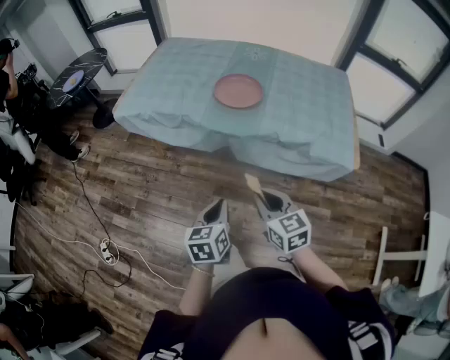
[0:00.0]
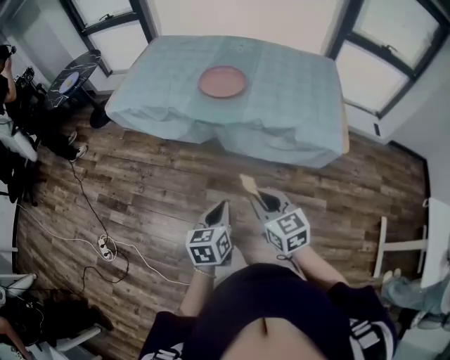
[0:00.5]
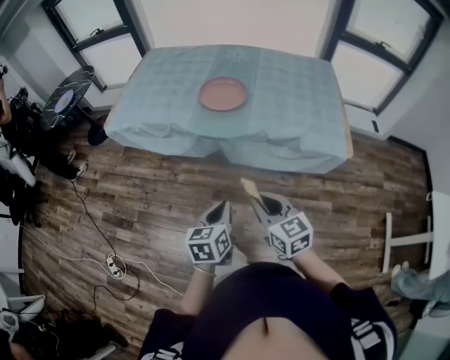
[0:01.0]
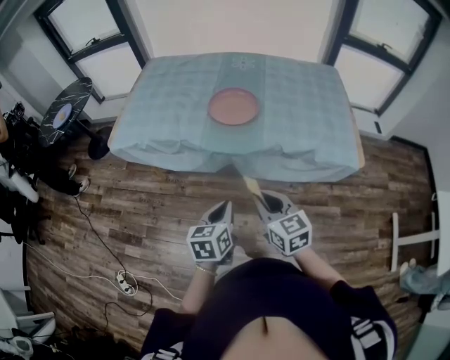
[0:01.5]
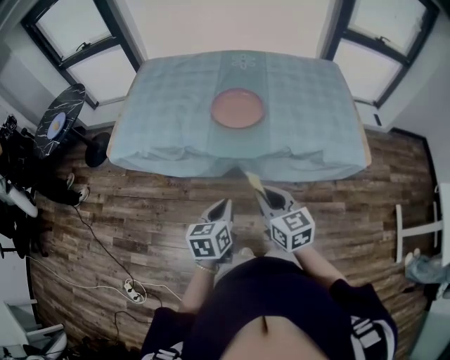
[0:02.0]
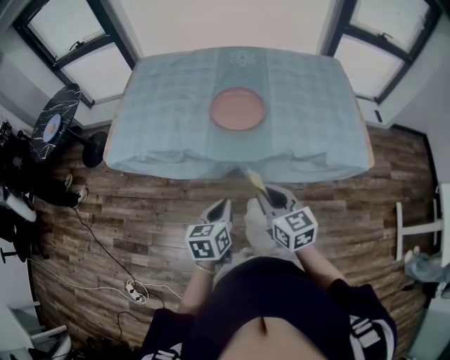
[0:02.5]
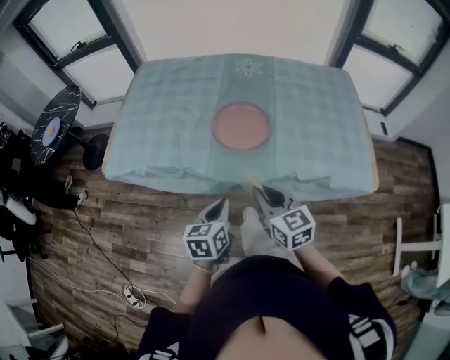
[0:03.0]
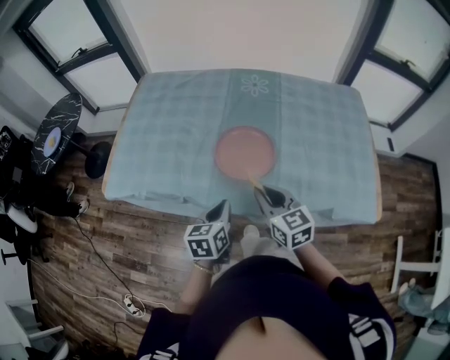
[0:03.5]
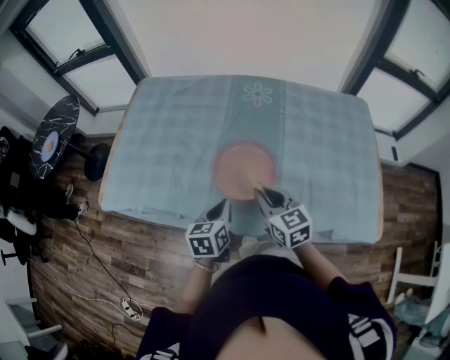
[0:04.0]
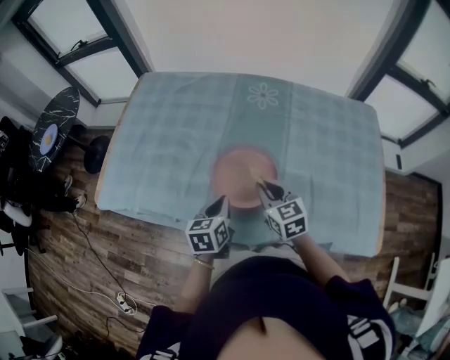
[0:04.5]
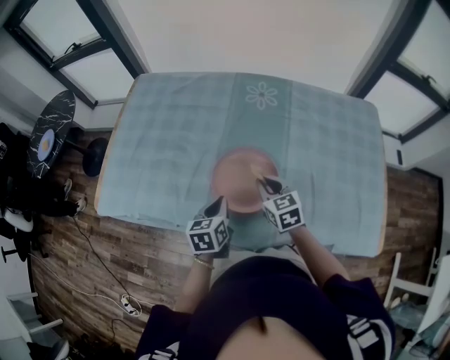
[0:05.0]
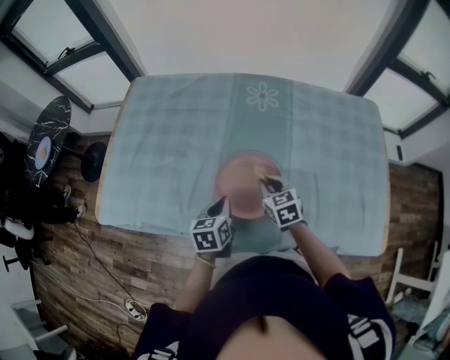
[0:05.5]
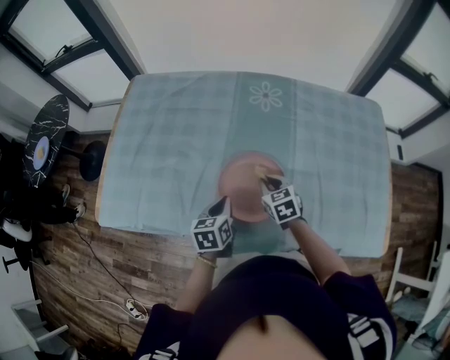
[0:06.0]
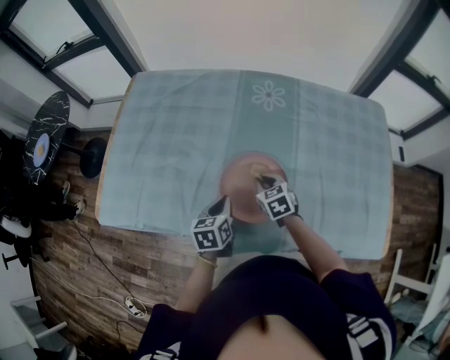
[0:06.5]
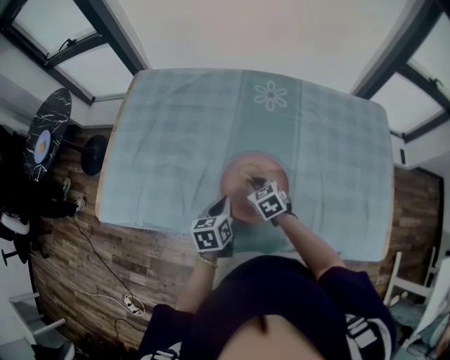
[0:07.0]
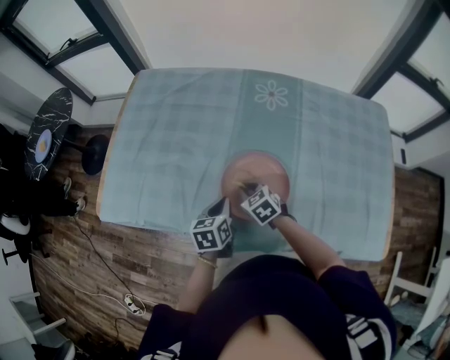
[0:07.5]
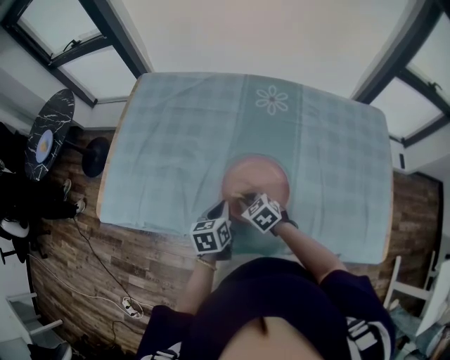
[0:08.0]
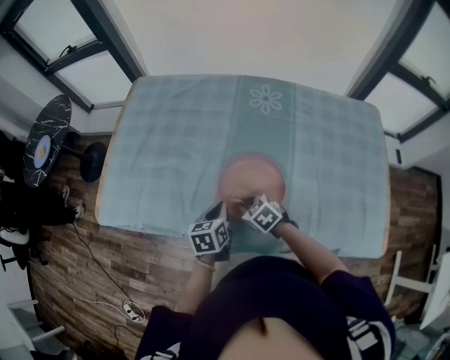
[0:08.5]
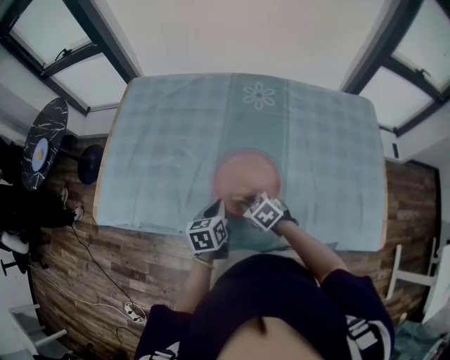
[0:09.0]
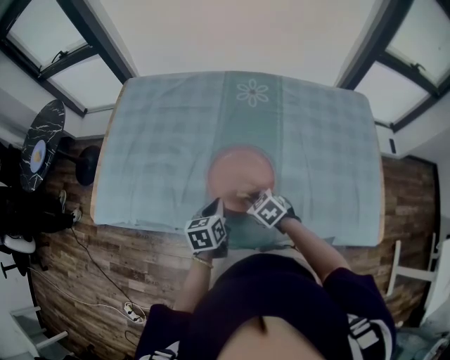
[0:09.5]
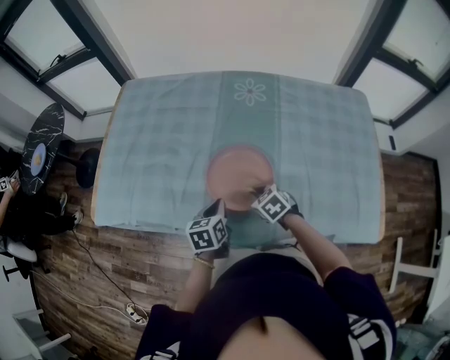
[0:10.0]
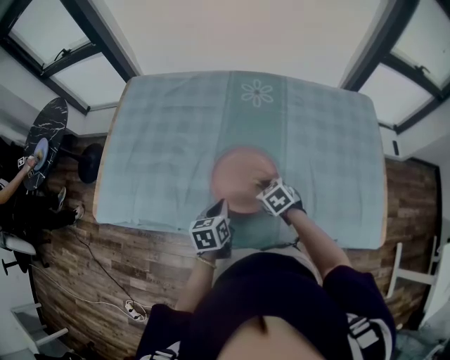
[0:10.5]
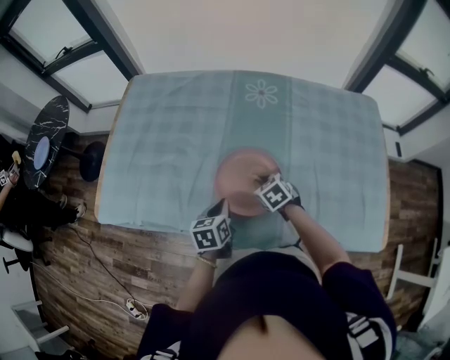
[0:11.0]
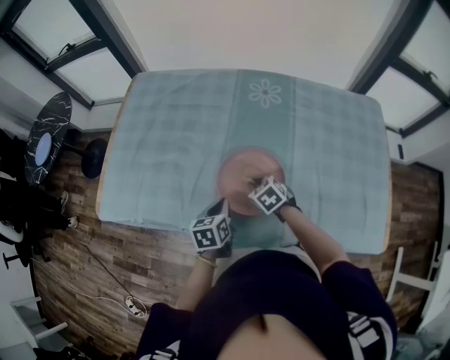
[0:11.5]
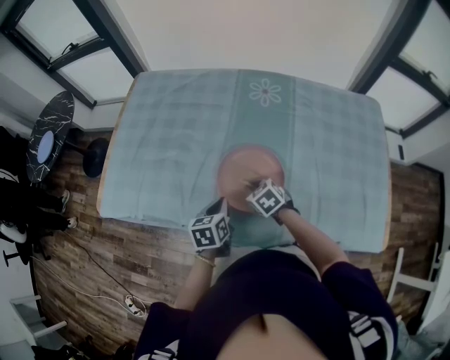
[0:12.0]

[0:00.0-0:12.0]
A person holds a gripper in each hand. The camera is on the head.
0:00.0 to 0:02.0: The left gripper is displaced forward by roughly 15 cm. Meanwhile the right gripper goes about 15 cm forward and to the left.
0:02.0 to 0:04.0: Both grippers travel together forward, about 35 cm.
0:04.0 to 0:06.0: The left gripper heads forward and downward, covering about 10 cm, while the right gripper moves downward and forward, some 20 cm, and changes its angle by approximately 20 degrees.
0:06.0 to 0:08.0: The right gripper goes some 10 cm to the left, and rotates approximately 20 degrees.
0:08.0 to 0:10.0: The right gripper moves to the right and backward, roughly 10 cm.
0:10.0 to 0:12.0: The right gripper changes place by some 5 cm.

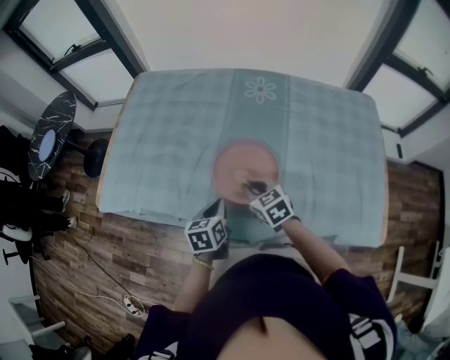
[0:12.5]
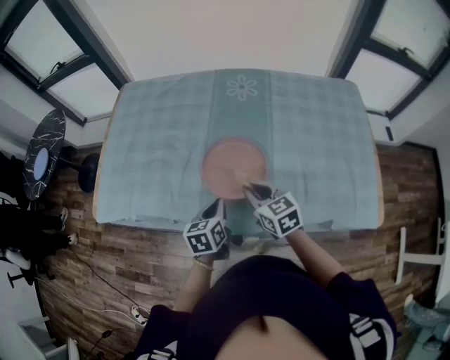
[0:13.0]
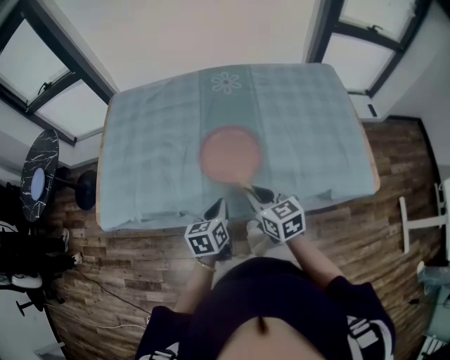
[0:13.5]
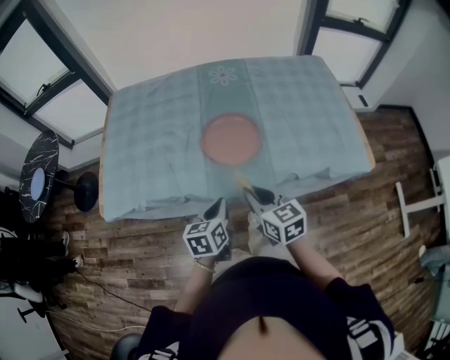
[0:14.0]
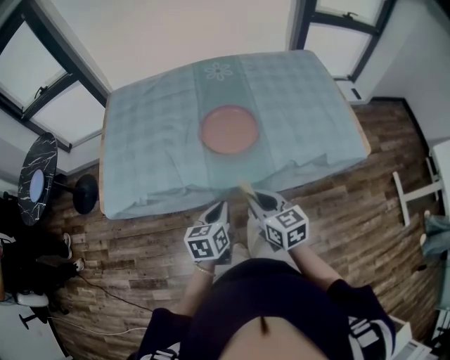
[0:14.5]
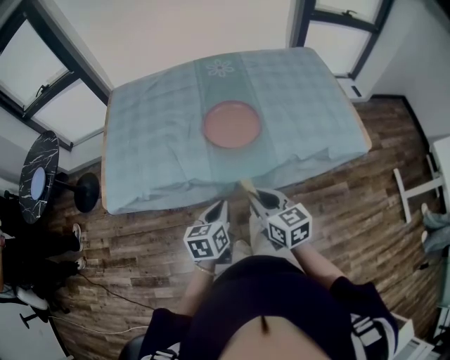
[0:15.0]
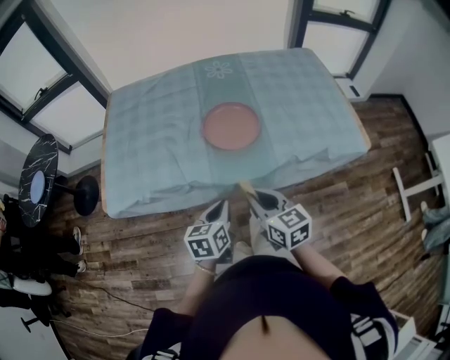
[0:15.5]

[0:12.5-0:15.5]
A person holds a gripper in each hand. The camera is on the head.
0:12.5 to 0:14.0: Both grippers travel together backward and upward, about 20 cm. The right gripper rotates roughly 30 degrees.
0:14.0 to 0:15.5: Both grippers move backward, about 5 cm.

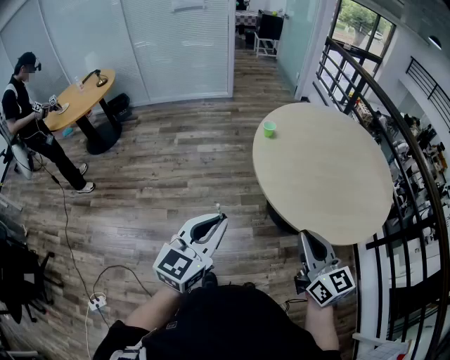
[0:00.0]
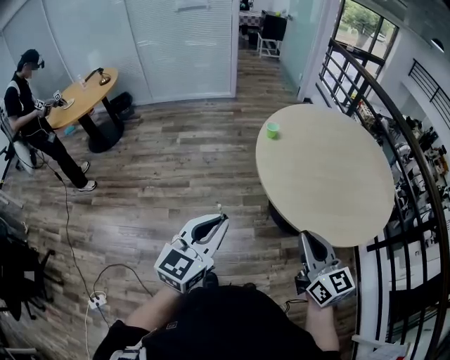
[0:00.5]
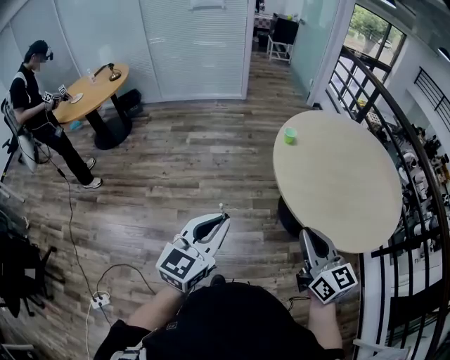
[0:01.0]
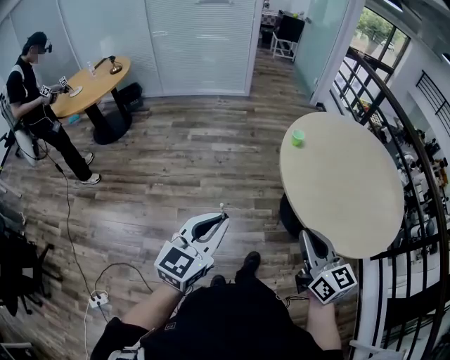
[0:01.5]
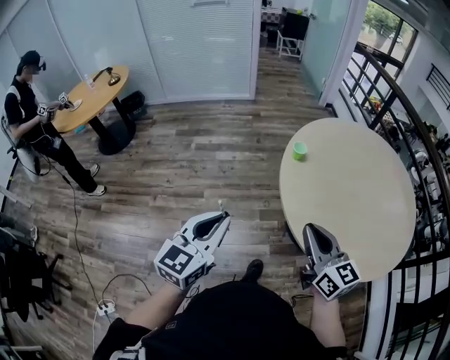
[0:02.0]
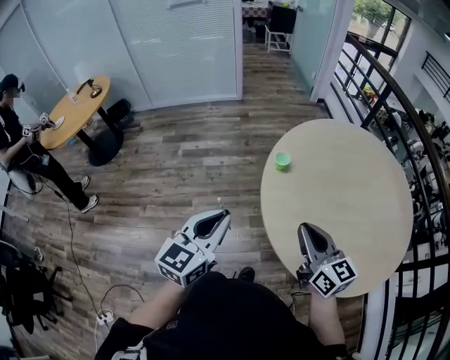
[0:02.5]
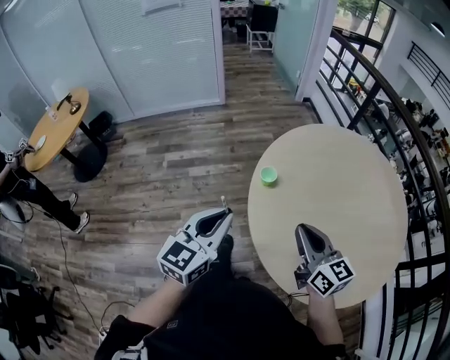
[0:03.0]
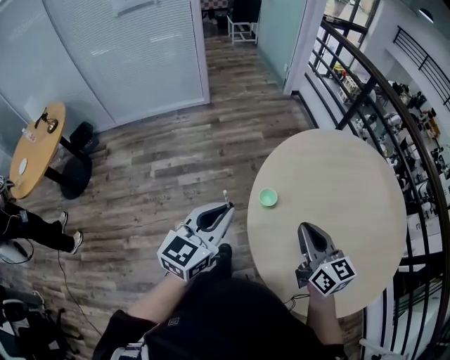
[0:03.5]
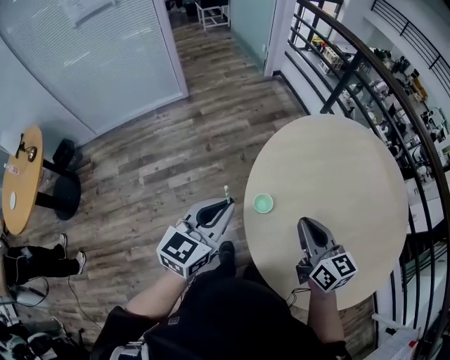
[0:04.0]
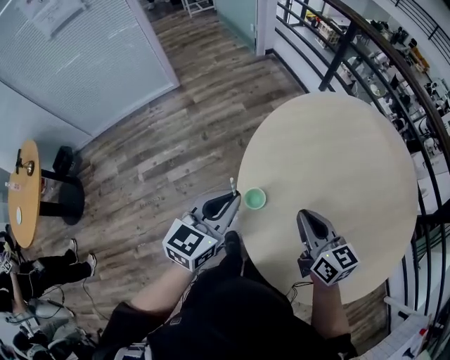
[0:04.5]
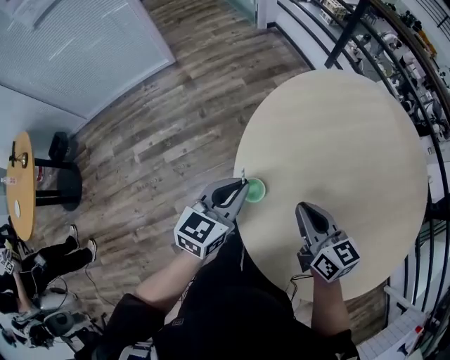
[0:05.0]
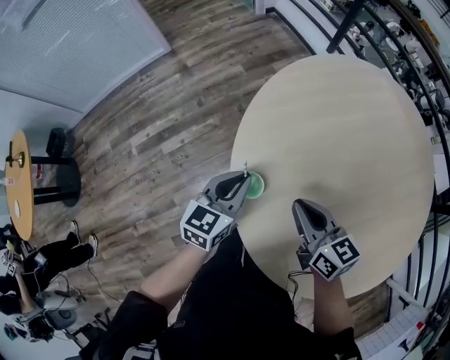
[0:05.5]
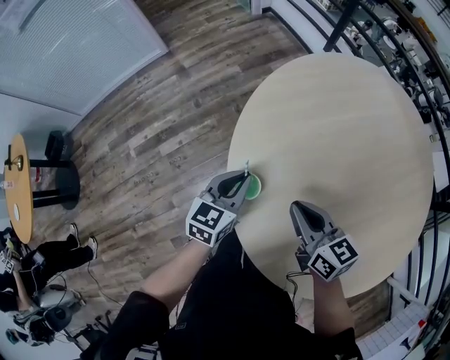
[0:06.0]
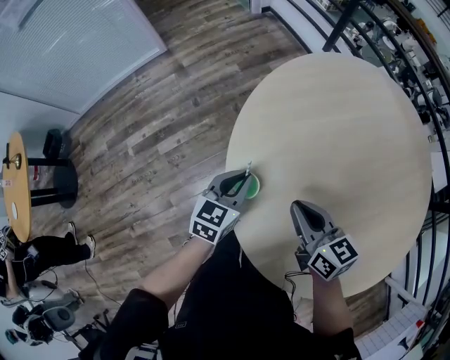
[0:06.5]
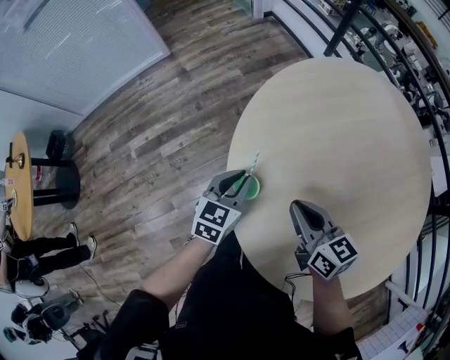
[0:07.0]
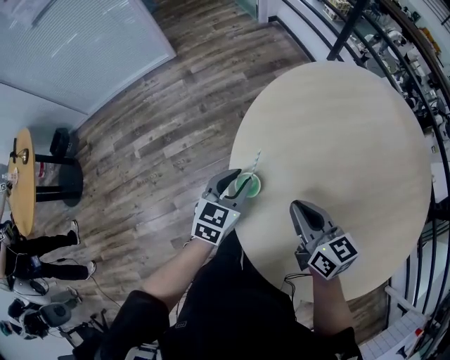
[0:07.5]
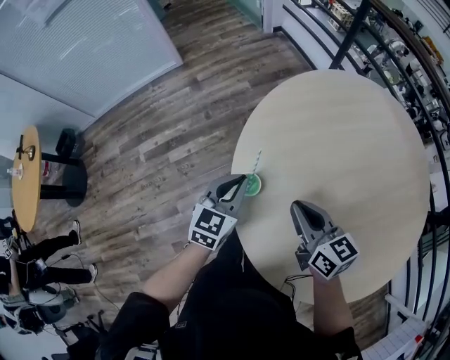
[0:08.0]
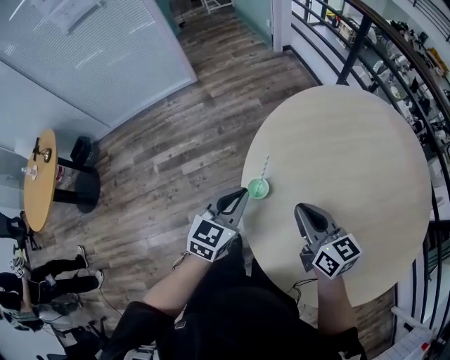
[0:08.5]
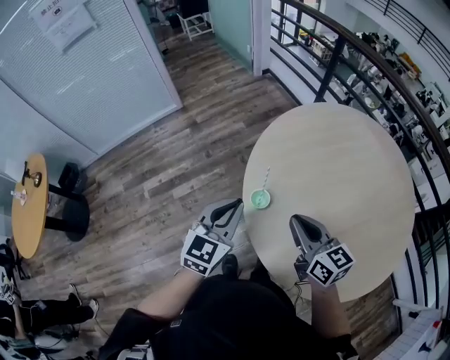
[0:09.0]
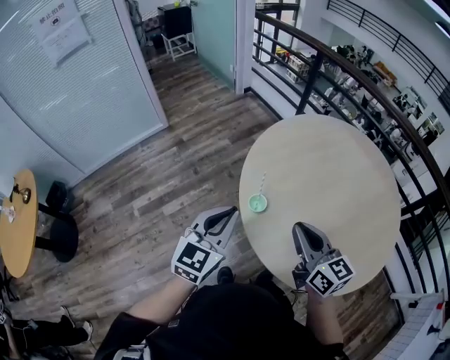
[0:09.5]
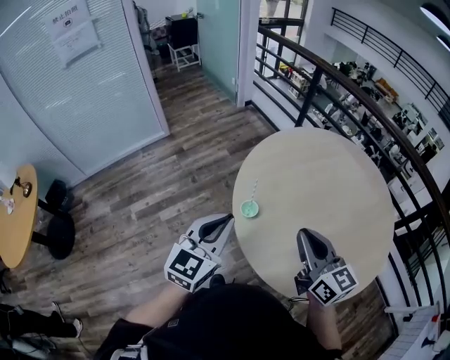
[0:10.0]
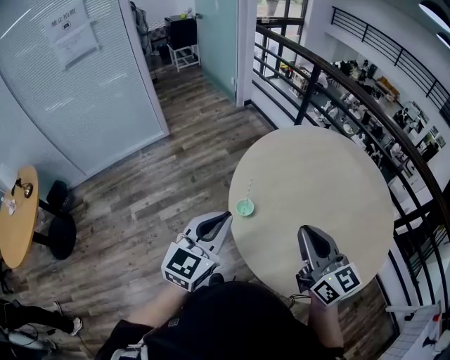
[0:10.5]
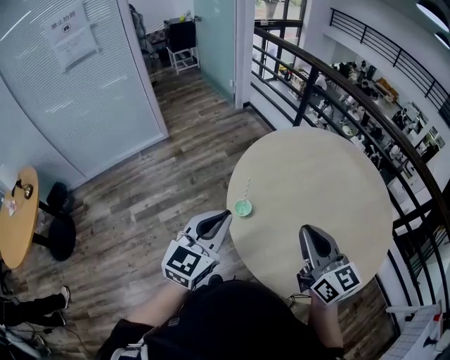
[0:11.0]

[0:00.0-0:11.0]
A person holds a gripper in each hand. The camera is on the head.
0:00.0 to 0:02.0: The two grippers go approximately 20 cm forward and to the left.
0:02.0 to 0:03.5: Both grippers travel together forward, approximately 35 cm.
0:03.5 to 0:05.5: The left gripper shifts roughly 30 cm downward, forward and to the right, and rotates roughly 20 degrees. The right gripper is displaced downward and forward by about 15 cm.
0:05.5 to 0:07.5: The left gripper opens its fingers.
0:07.5 to 0:09.0: The right gripper shifts some 10 cm upward and backward, while the left gripper heads upward and backward, covering roughly 20 cm, and closes up.
0:09.0 to 0:11.0: The left gripper travels upward and backward by roughly 10 cm; the right gripper goes approximately 15 cm upward, backward and to the right.

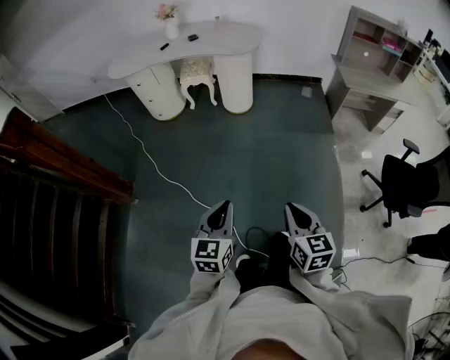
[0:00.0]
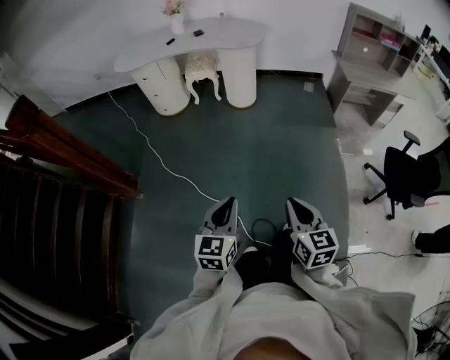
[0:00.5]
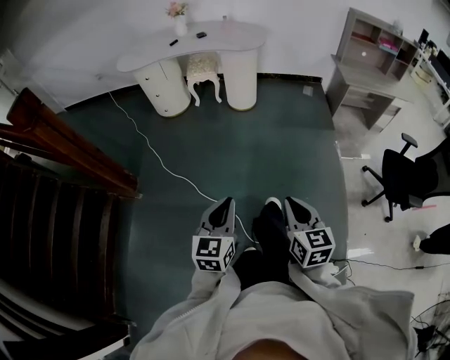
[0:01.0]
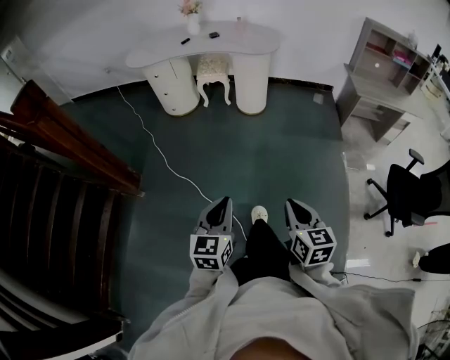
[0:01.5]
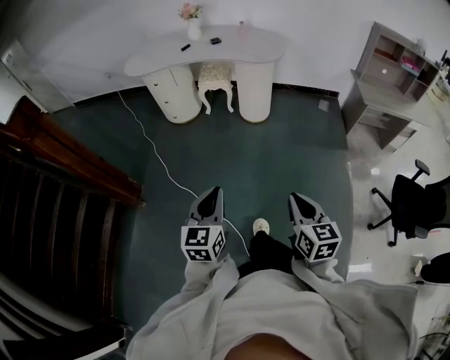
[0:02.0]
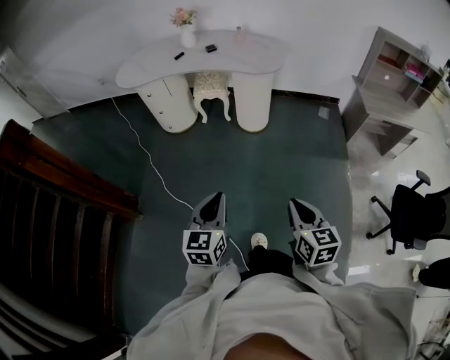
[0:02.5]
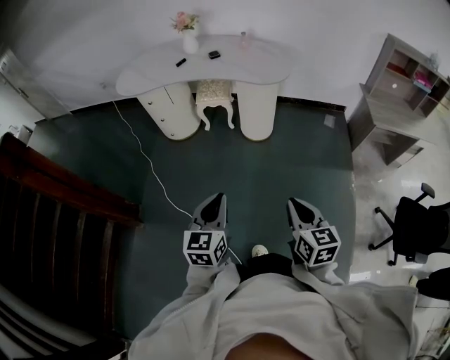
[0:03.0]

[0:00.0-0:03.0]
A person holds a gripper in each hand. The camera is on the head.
0:00.0 to 0:01.5: Both grippers move to the left, approximately 5 cm.
0:01.5 to 0:03.0: The two grippers go about 30 cm forward.
